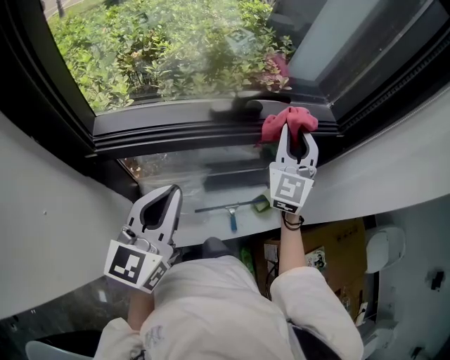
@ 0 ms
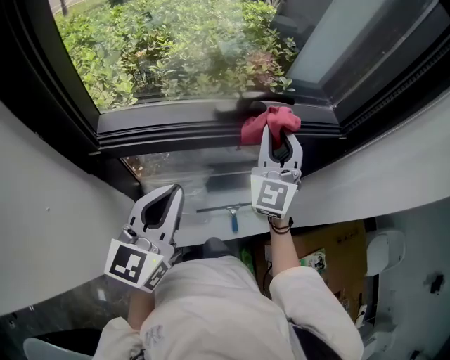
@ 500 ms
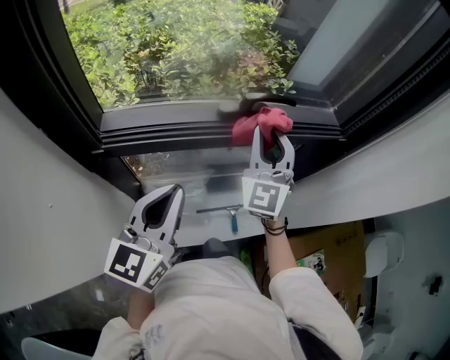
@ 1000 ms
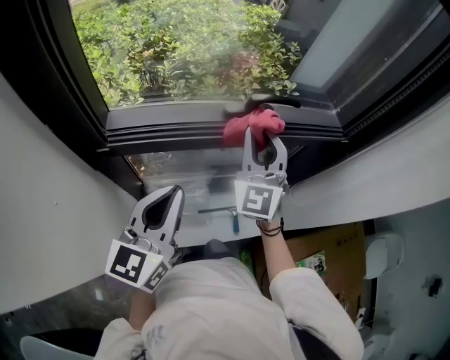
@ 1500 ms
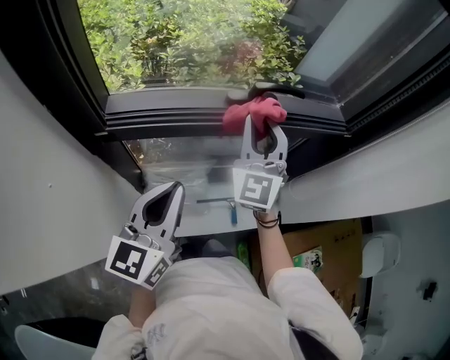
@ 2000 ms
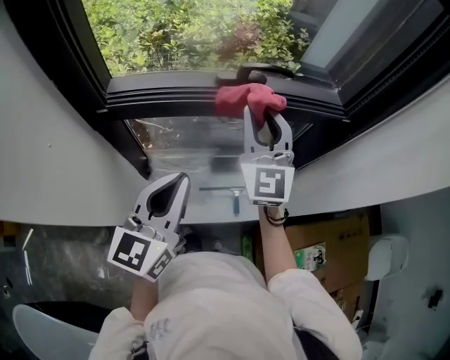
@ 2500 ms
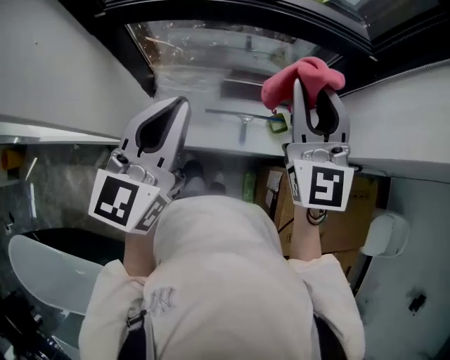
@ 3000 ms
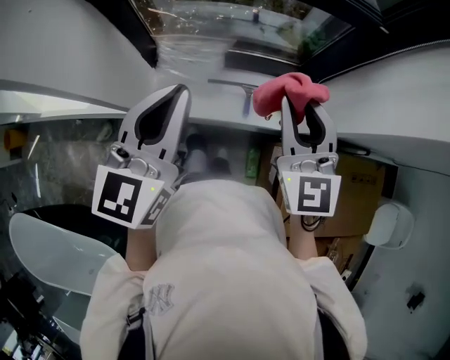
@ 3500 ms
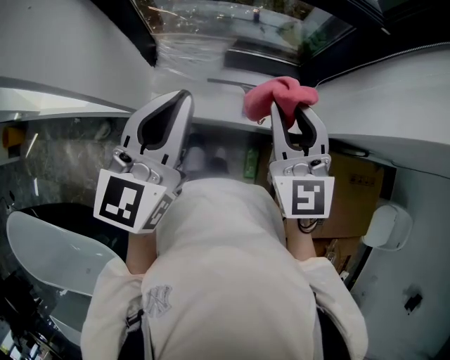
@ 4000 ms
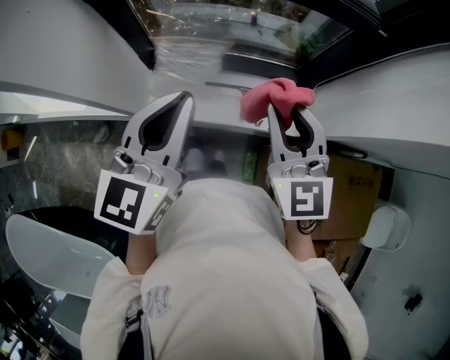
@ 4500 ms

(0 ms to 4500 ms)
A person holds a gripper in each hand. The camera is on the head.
0 ms - 2000 ms: The right gripper heads to the left, covering about 10 cm.
2000 ms - 4500 ms: The right gripper moves backward, about 25 cm, and changes its angle by about 40 degrees; the left gripper is displaced backward and to the right by approximately 20 cm.

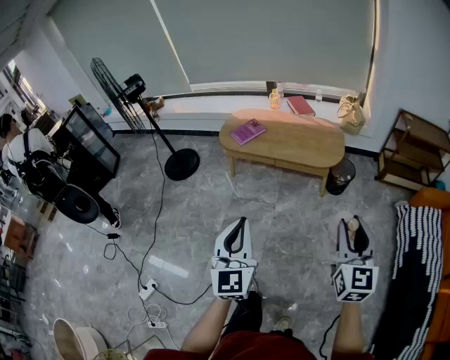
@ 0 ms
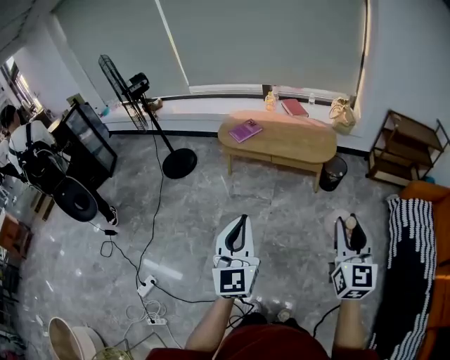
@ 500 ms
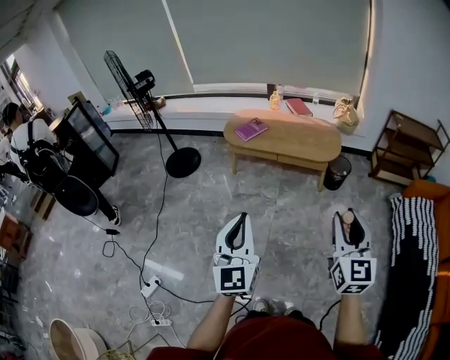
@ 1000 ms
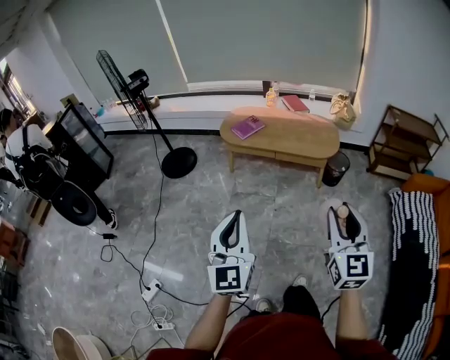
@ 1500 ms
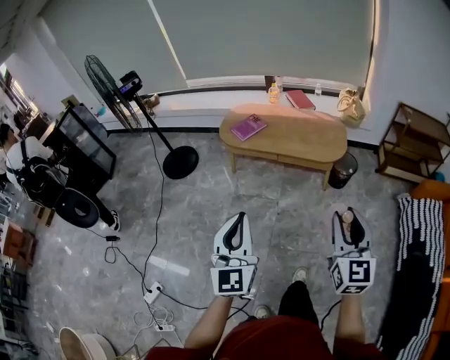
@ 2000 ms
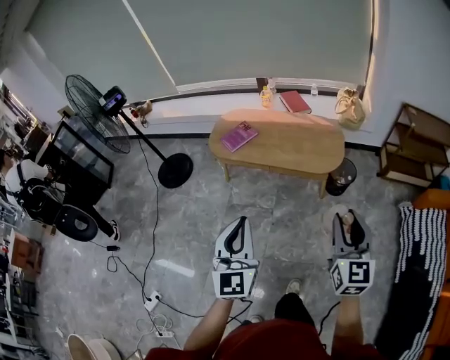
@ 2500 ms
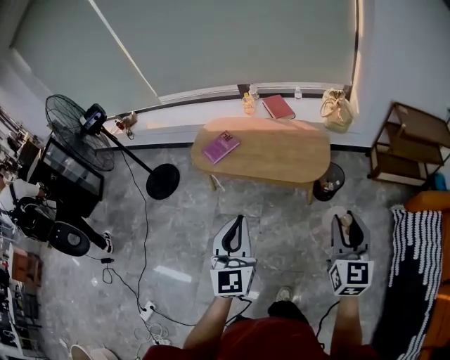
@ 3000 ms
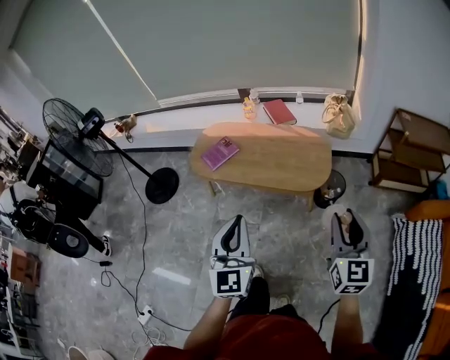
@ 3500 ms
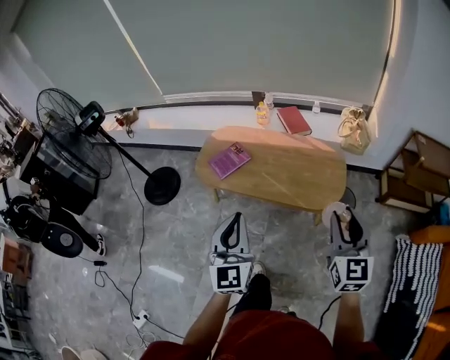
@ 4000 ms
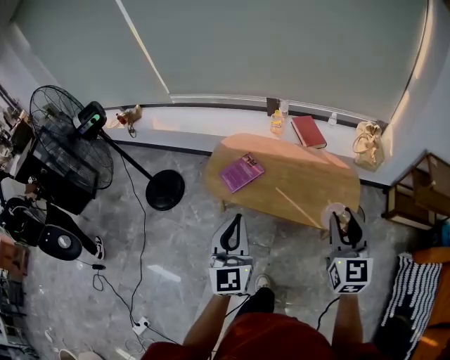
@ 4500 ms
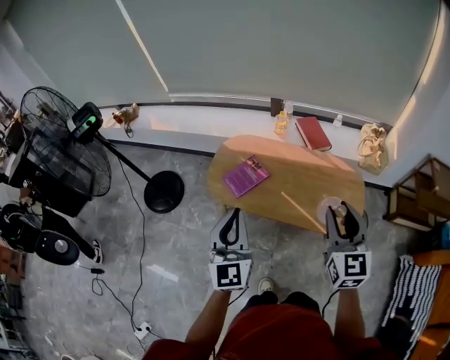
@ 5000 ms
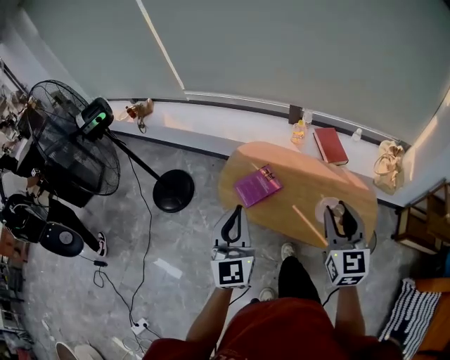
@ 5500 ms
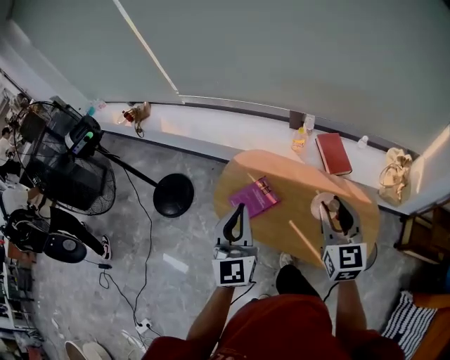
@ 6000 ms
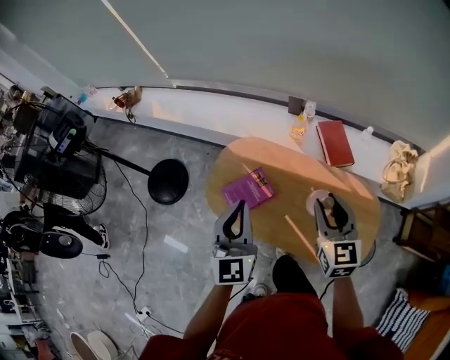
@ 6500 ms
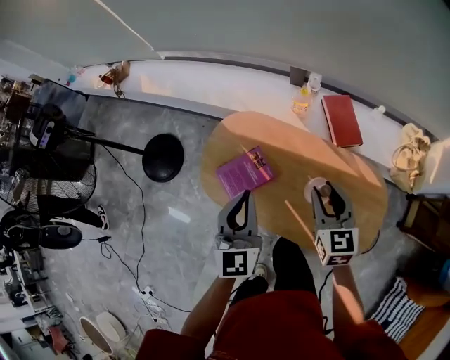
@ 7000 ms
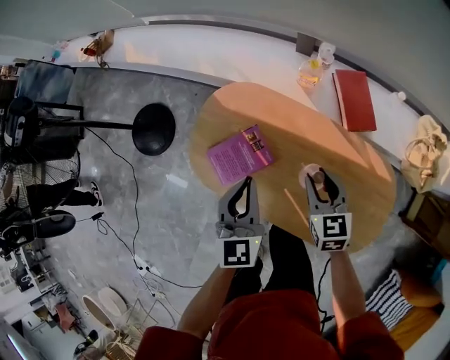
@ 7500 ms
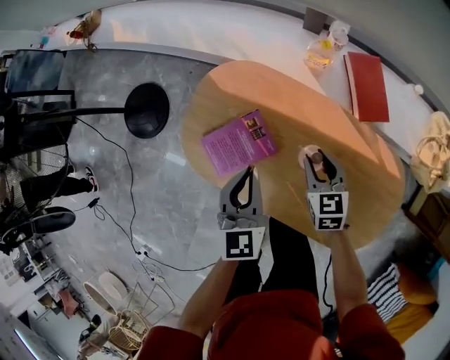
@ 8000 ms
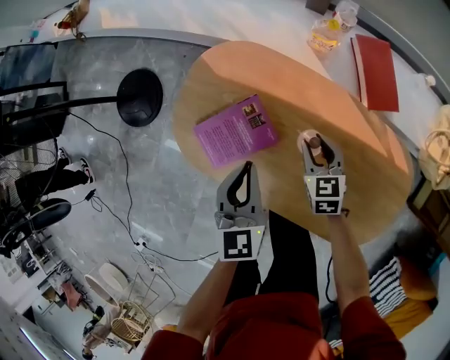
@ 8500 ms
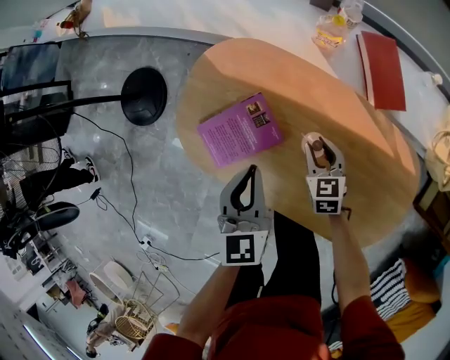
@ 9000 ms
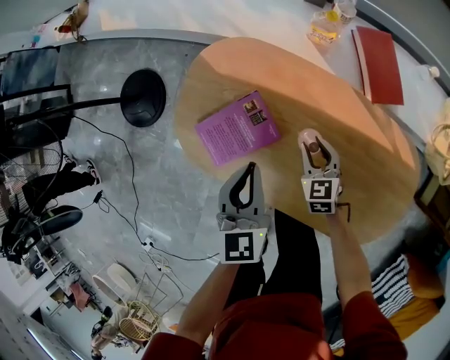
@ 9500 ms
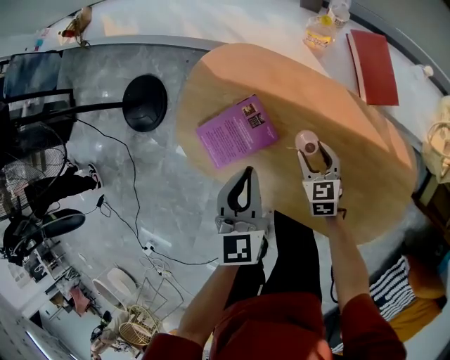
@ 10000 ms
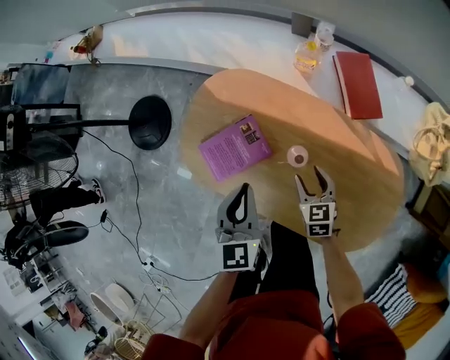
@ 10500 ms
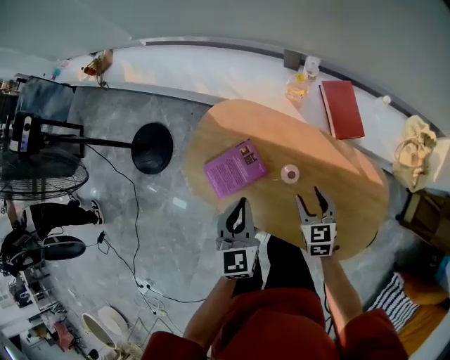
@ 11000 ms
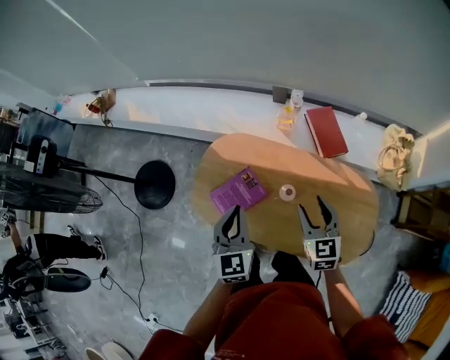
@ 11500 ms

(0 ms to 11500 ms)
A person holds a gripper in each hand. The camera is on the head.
0 ms - 2000 ms: Both grippers travel together to the left, about 5 cm. The left gripper goes backward and returns, roughly 10 cm each way.
2000 ms - 4000 ms: The two grippers travel together, forward, some 40 cm.
4000 ms - 6000 ms: Both grippers are carried forward, some 40 cm.
6000 ms - 7500 ms: The two grippers go some 30 cm downward and forward. The left gripper turns by roughly 20 degrees; the right gripper swivels roughly 30 degrees.
7500 ms - 9500 ms: The right gripper shifts roughly 20 cm downward; the left gripper travels downward by some 10 cm.
9500 ms - 11500 ms: The left gripper is displaced upward by some 20 cm; the right gripper shifts roughly 30 cm upward.

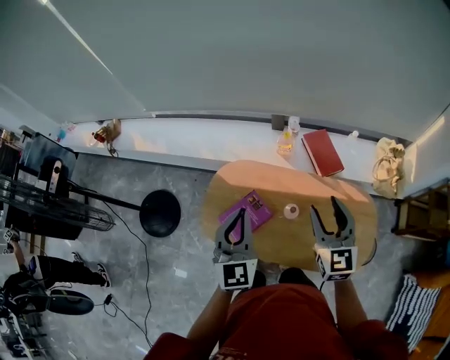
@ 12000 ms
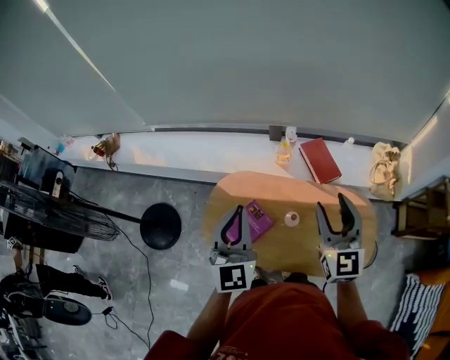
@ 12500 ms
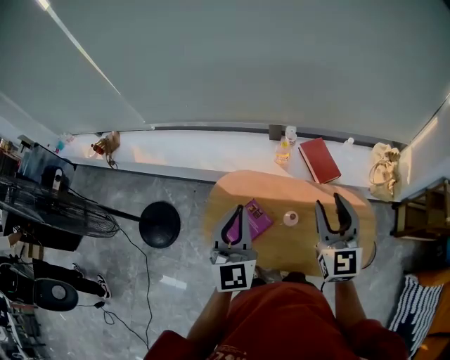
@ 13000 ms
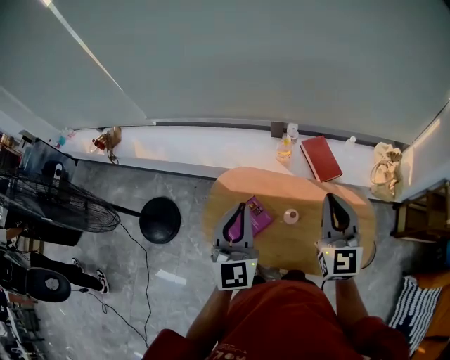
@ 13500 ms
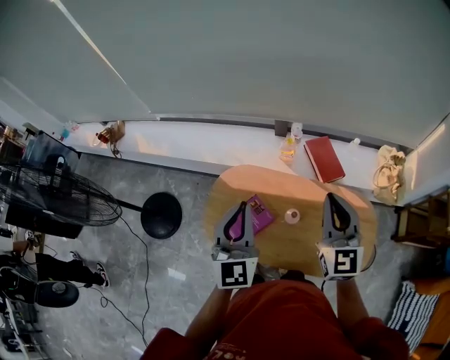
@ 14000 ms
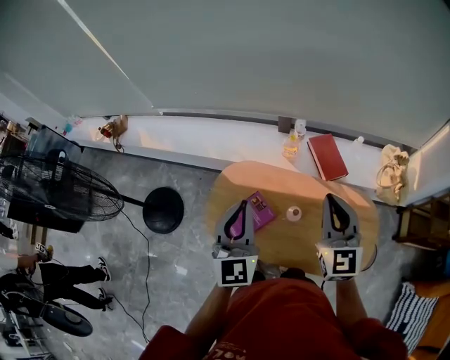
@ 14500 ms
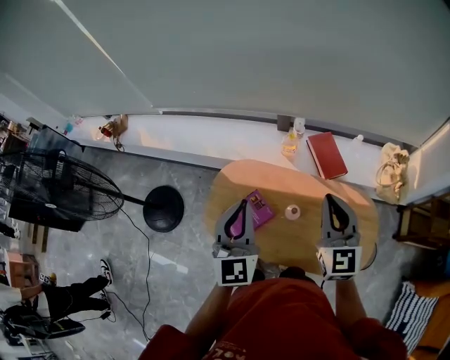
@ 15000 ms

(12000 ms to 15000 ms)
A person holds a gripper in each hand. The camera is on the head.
12000 ms - 13500 ms: The right gripper goes roughly 5 cm upward, and closes its fingers.
13500 ms - 15000 ms: The grippers stay close to where they were, moving slightly.

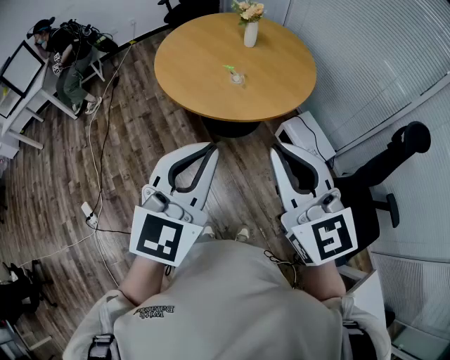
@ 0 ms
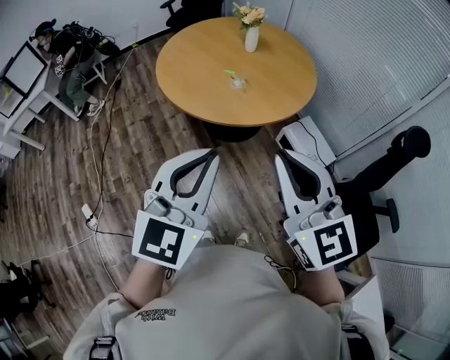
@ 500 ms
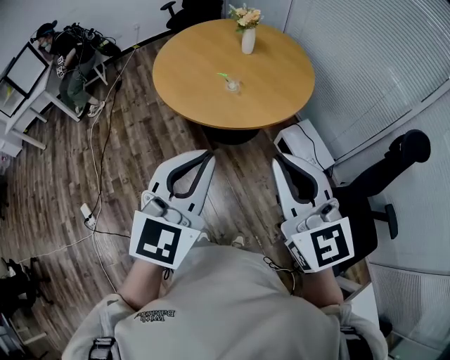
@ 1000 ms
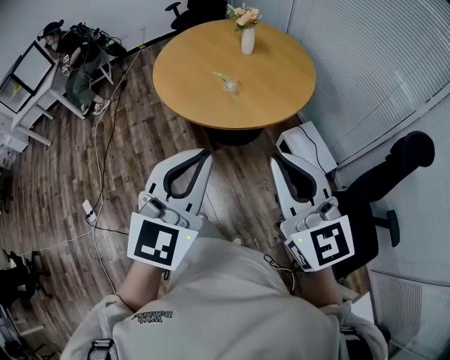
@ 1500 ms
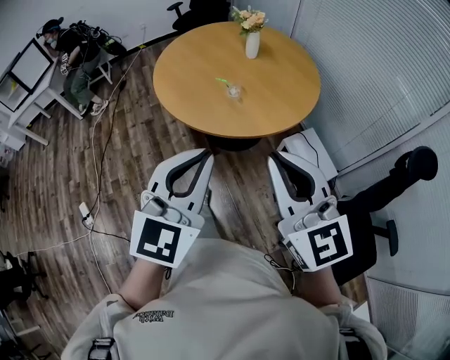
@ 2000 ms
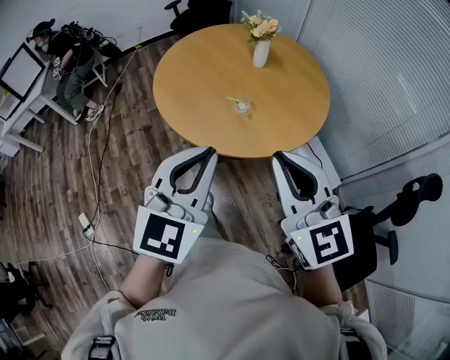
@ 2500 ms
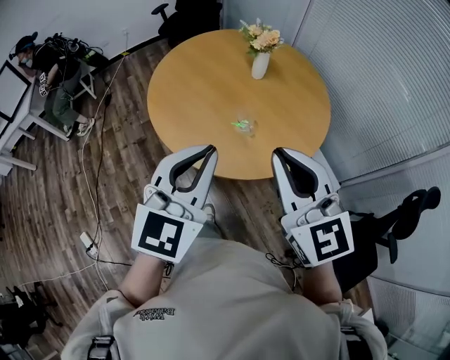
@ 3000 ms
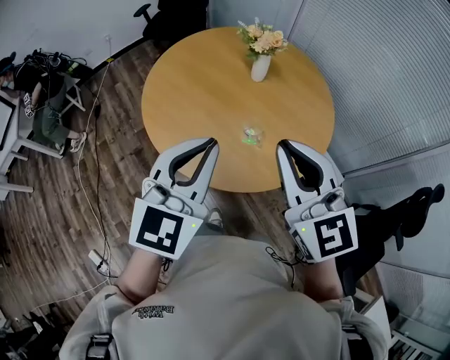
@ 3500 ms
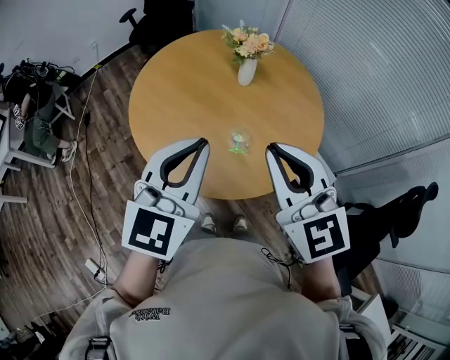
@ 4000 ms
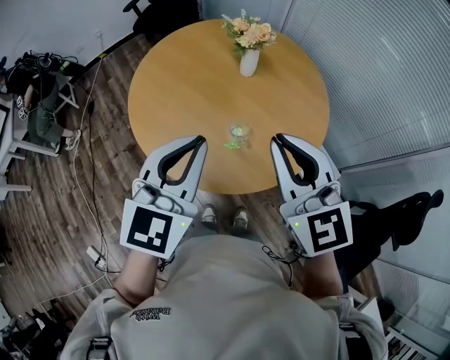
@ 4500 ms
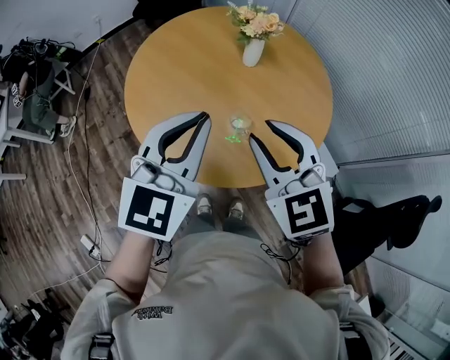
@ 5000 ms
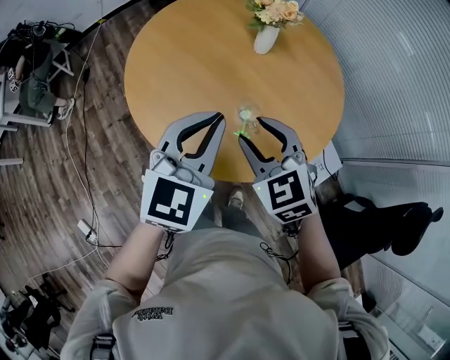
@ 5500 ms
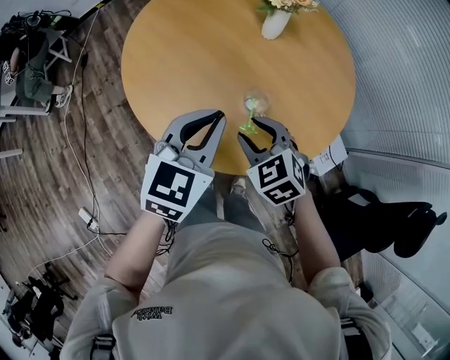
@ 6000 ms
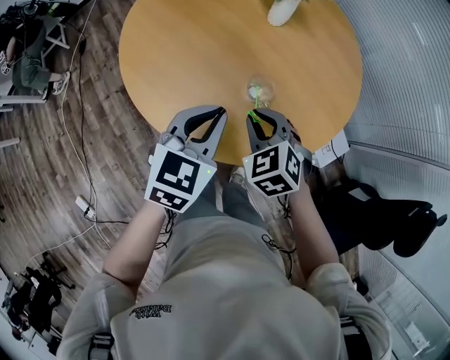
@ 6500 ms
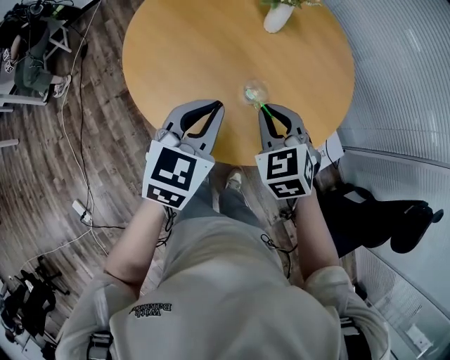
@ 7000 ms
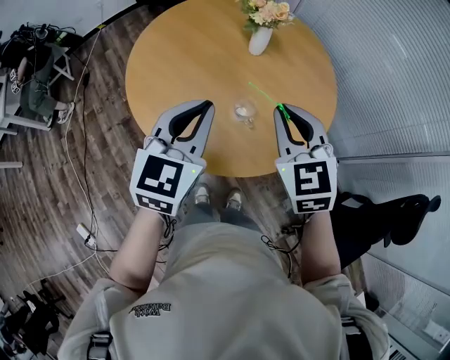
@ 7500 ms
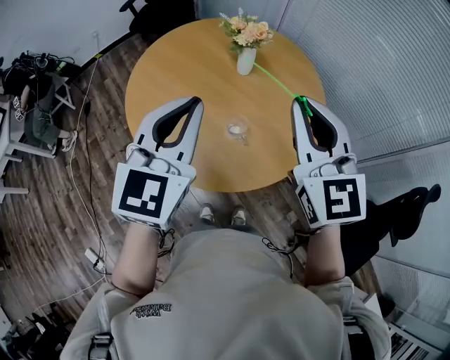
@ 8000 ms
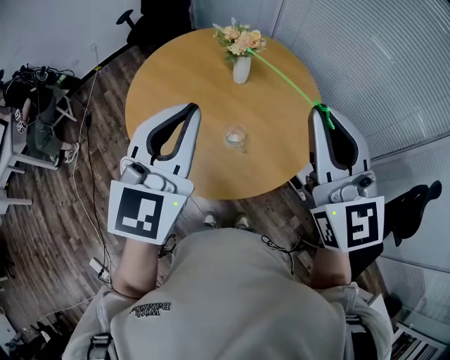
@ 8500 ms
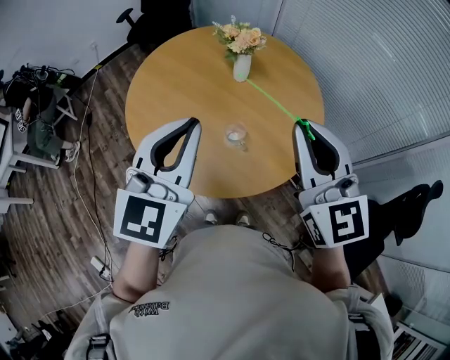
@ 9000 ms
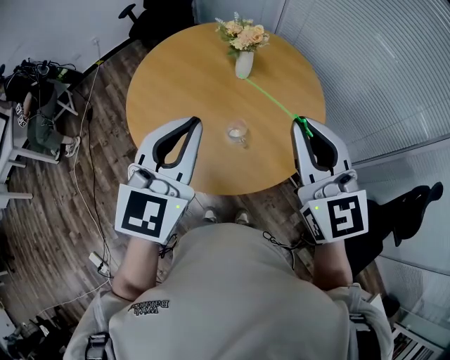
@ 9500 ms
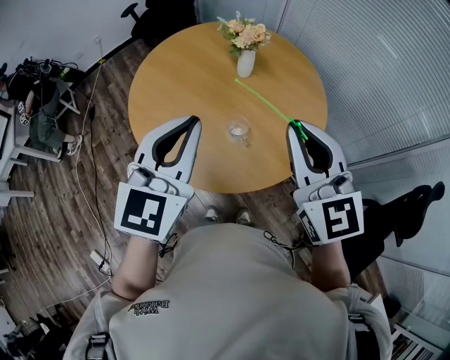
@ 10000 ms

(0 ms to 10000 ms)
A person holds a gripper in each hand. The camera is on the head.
0 ms - 2000 ms: The grippers both shift to the right and forward by about 10 cm.
2000 ms - 4000 ms: The right gripper moves forward and to the left, roughly 35 cm. The left gripper travels forward by approximately 35 cm.
4000 ms - 6000 ms: The right gripper is displaced downward by some 30 cm, tilts its fingers approximately 40 degrees downward, and opens its fingers. Meanwhile the left gripper goes approximately 20 cm downward and forward.
6000 ms - 8000 ms: The left gripper is displaced upward by approximately 20 cm, and turns by some 20 degrees. Meanwhile the right gripper goes roughly 30 cm upward, points its fingers approximately 40 degrees further upward, and closes.
